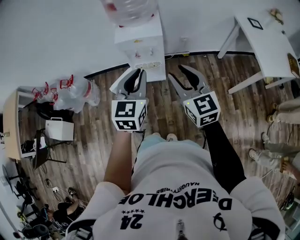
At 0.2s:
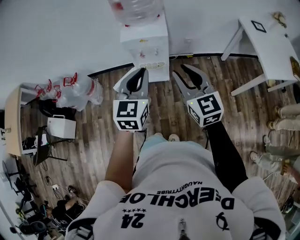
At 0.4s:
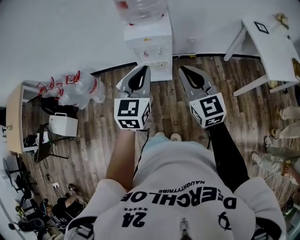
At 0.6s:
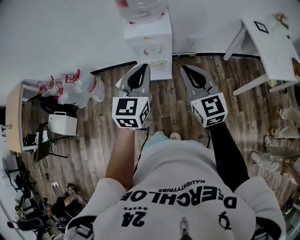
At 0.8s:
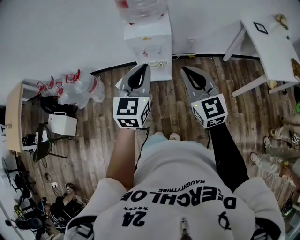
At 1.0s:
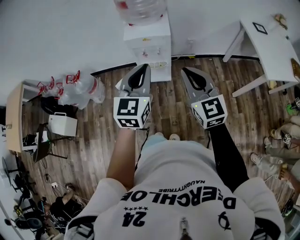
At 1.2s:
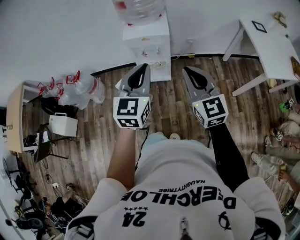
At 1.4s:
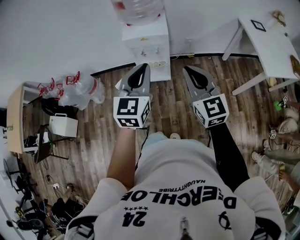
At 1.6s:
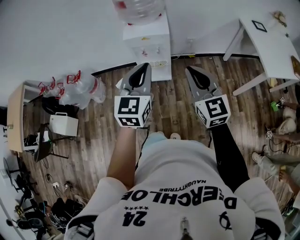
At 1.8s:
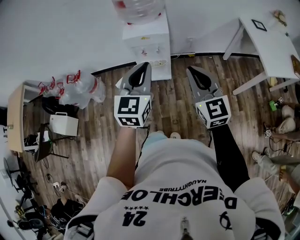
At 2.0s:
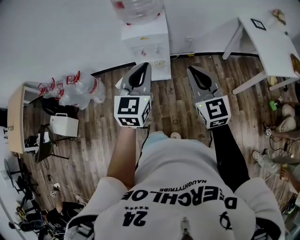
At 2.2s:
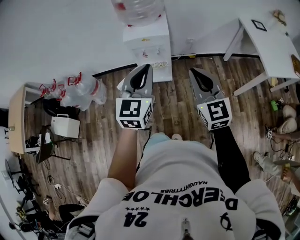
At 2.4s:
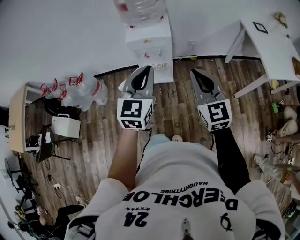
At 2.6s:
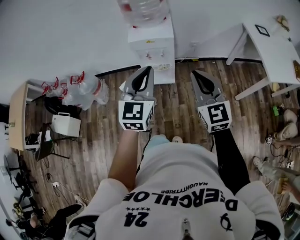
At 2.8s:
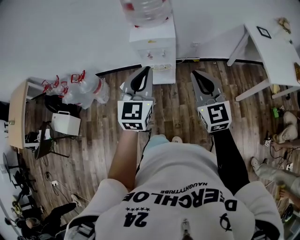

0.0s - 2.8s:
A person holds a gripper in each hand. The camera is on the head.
0.0s - 1.4s: The left gripper moves roughly 5 cm. Meanwhile the right gripper ends up some 5 cm from where it was, and closes up.
1.4s - 2.8s: The grippers make only small movements.

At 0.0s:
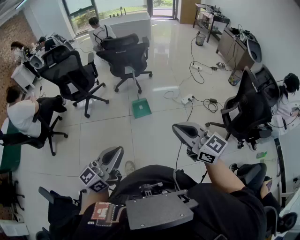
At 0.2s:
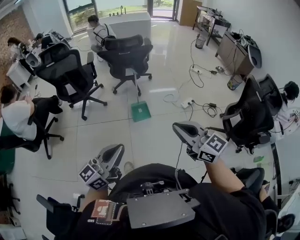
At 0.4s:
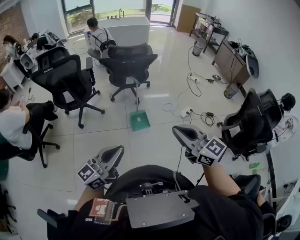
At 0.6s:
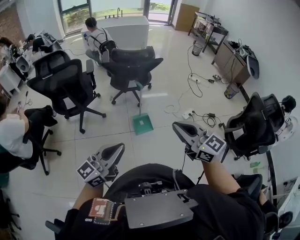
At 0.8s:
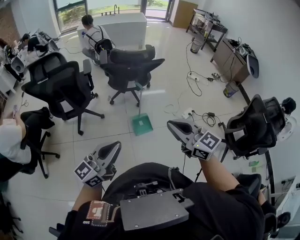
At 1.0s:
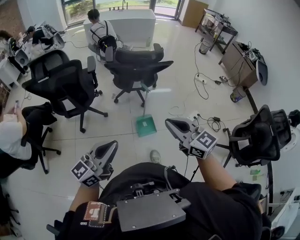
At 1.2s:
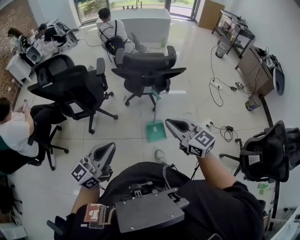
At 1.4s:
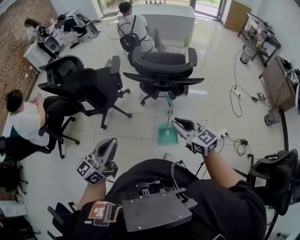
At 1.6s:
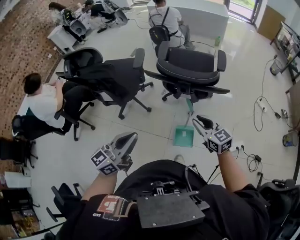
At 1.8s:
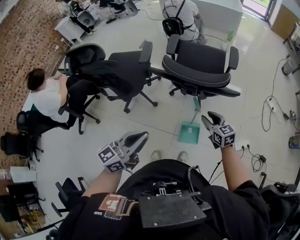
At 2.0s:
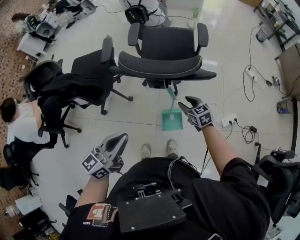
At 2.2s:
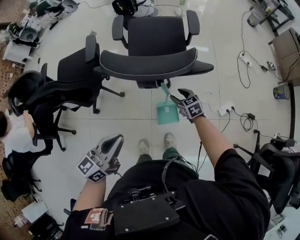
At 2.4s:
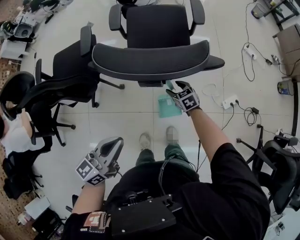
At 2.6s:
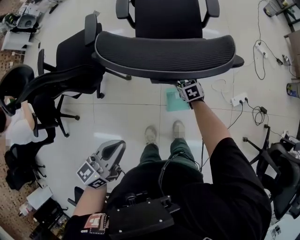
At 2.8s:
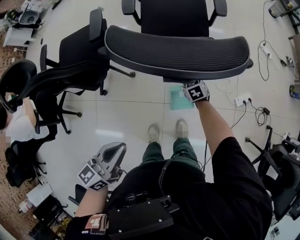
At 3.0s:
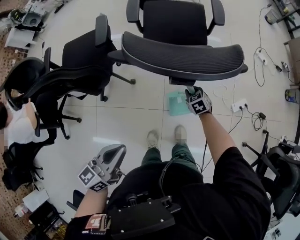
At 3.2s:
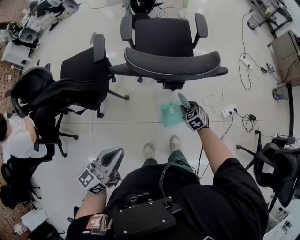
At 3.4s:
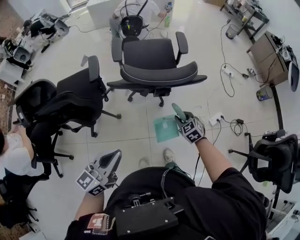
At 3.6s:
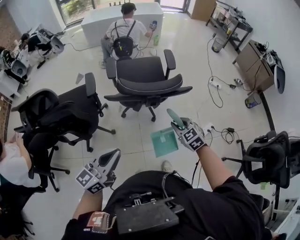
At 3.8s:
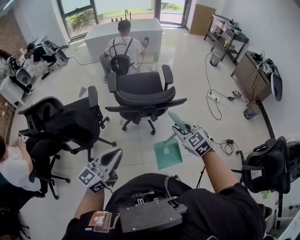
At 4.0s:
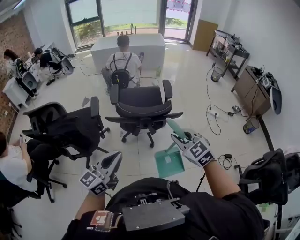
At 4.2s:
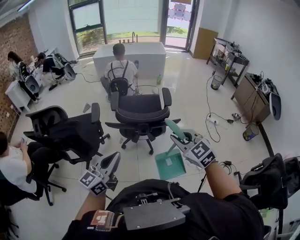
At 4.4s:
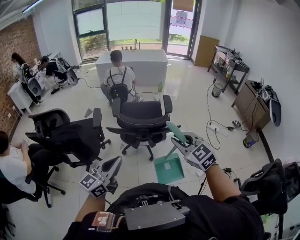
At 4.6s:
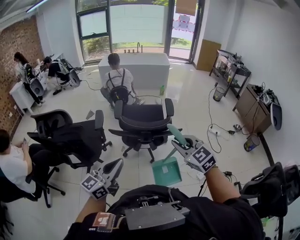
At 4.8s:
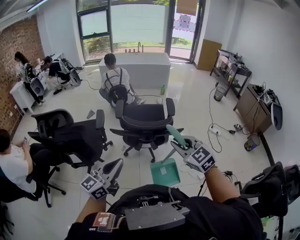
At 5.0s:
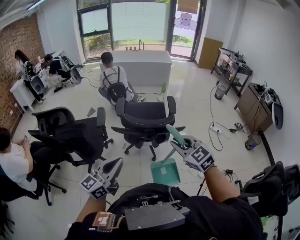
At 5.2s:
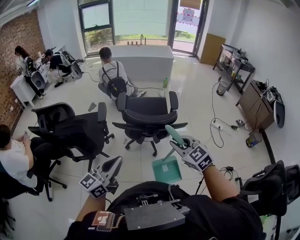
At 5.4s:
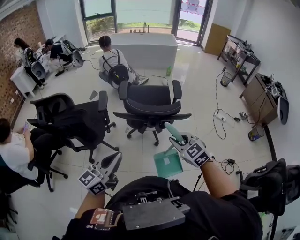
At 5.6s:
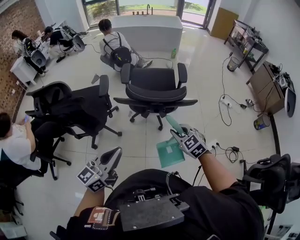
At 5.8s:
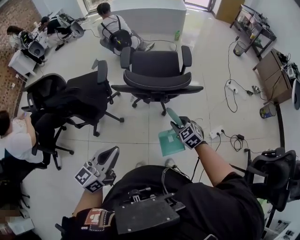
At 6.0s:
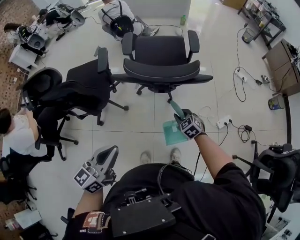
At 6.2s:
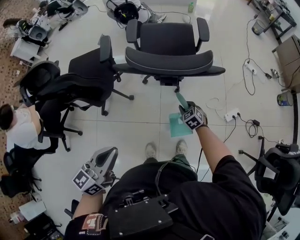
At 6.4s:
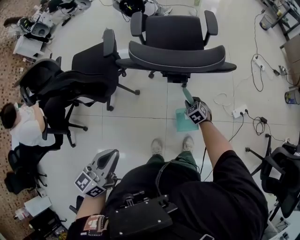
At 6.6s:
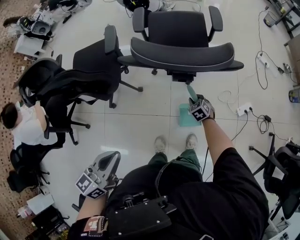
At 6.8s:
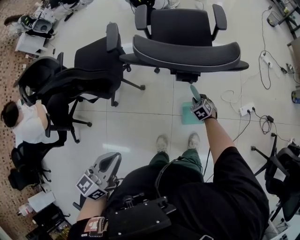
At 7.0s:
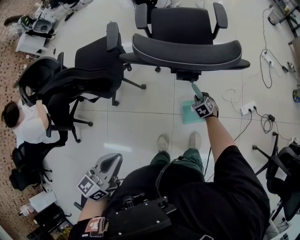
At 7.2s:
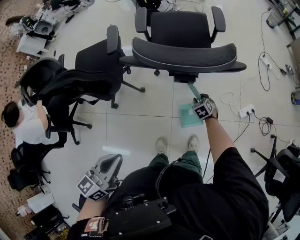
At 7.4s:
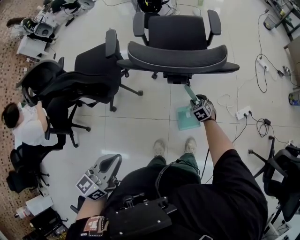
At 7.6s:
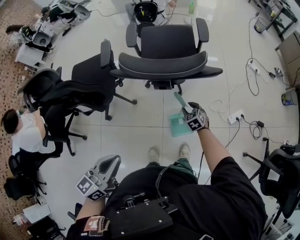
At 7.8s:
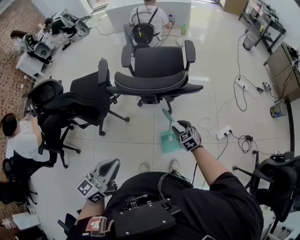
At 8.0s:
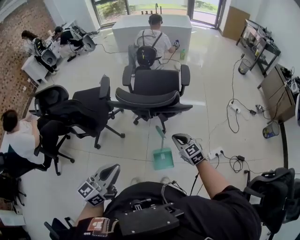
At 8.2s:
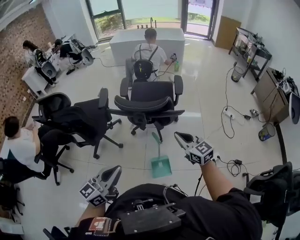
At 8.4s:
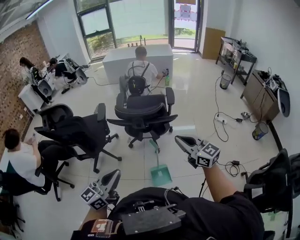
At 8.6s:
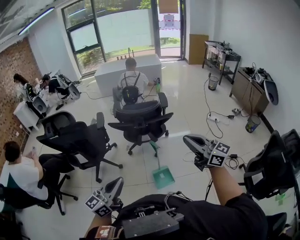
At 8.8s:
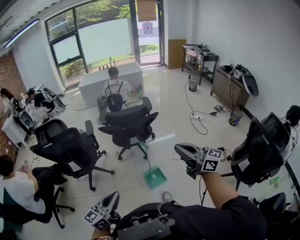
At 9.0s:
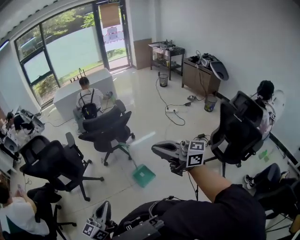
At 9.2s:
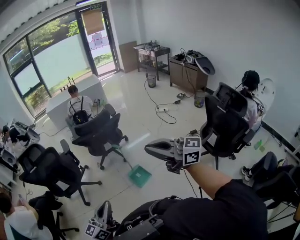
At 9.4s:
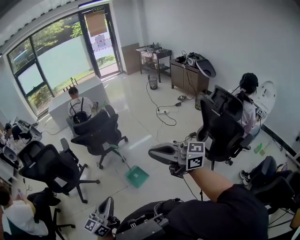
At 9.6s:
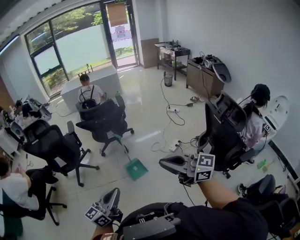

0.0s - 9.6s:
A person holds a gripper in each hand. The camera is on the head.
0.0s - 1.6s: Both grippers are carried forward, about 1 m. The left gripper swivels roughly 20 degrees. Meanwhile the right gripper rotates some 20 degrees, and opens up.
1.6s - 3.2s: The left gripper shifts some 25 cm forward, downward and to the left. The right gripper goes approximately 40 cm downward and forward, points its fingers some 40 degrees further downward, and opens and closes again.
3.2s - 4.8s: The left gripper travels upward and backward by about 35 cm, and changes its angle by roughly 20 degrees. The right gripper goes about 60 cm upward and backward, and points its fingers some 30 degrees further upward.
4.8s - 6.4s: The left gripper moves downward, some 25 cm, and turns by some 30 degrees. Meanwhile the right gripper heads downward, covering roughly 60 cm, and tips its fingers downward by approximately 30 degrees.
6.4s - 8.0s: The left gripper moves to the right, upward and backward, roughly 25 cm; the right gripper travels upward and to the right by about 35 cm, rotates some 30 degrees, and opens, then closes once more.
8.0s - 9.6s: The pair of grippers is taken backward, some 90 cm. The right gripper points its fingers approximately 40 degrees further upward. The left gripper rotates roughly 20 degrees.

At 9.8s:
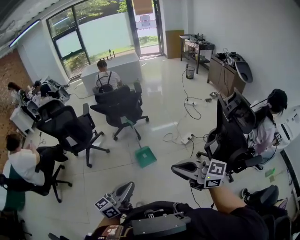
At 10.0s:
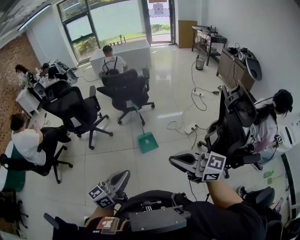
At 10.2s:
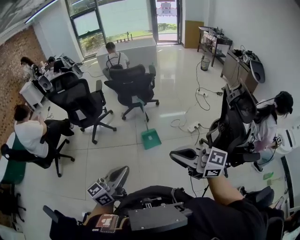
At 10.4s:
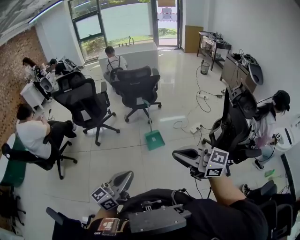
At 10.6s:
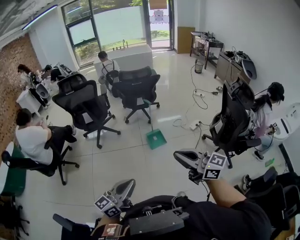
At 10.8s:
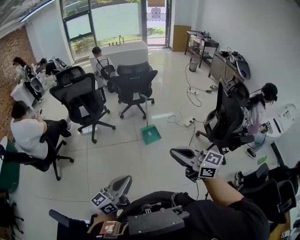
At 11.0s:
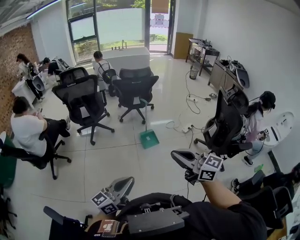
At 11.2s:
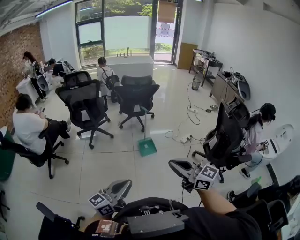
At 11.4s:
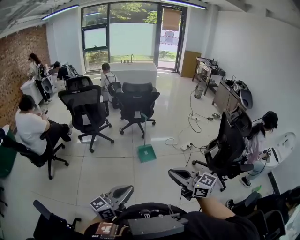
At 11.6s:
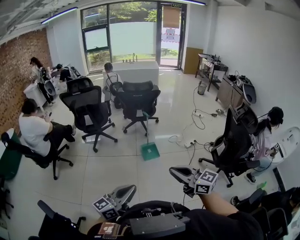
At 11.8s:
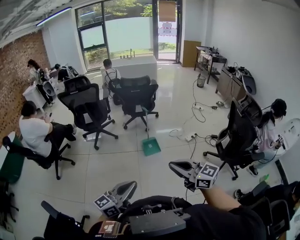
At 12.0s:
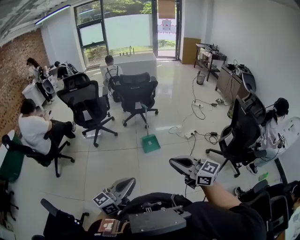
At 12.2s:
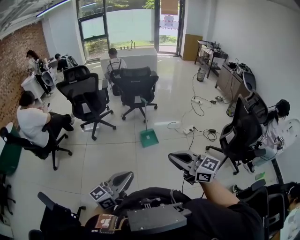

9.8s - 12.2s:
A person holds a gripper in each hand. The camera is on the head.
9.8s - 11.0s: The two grippers travel together, to the left and backward, about 50 cm.
11.0s - 12.2s: The grippers both shift to the right by about 20 cm.

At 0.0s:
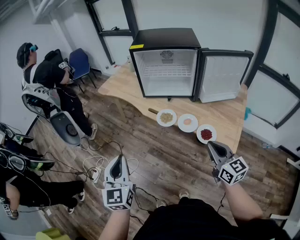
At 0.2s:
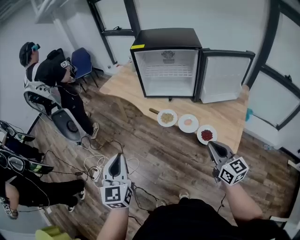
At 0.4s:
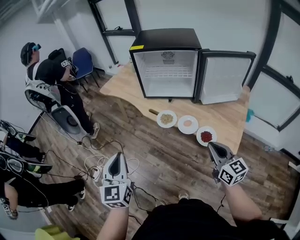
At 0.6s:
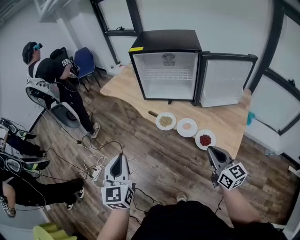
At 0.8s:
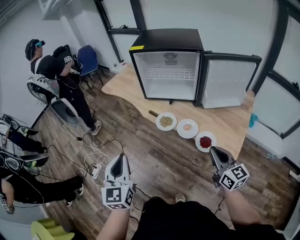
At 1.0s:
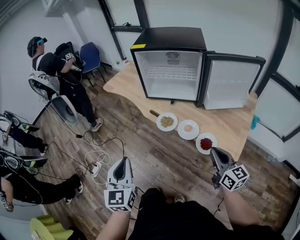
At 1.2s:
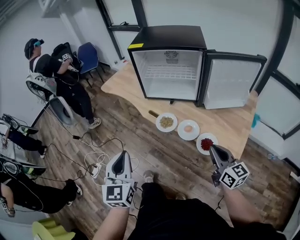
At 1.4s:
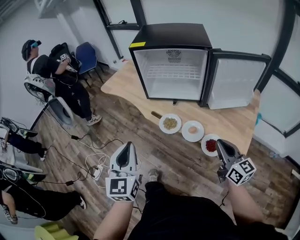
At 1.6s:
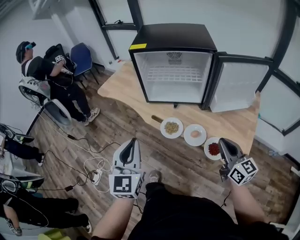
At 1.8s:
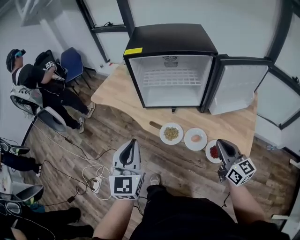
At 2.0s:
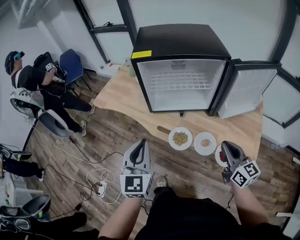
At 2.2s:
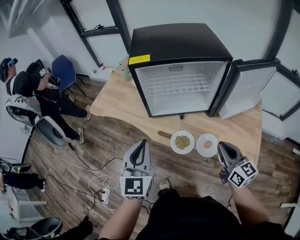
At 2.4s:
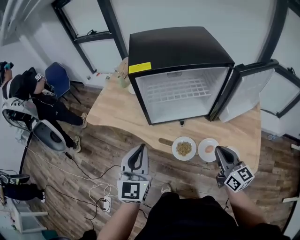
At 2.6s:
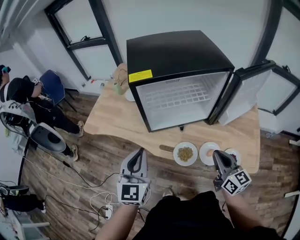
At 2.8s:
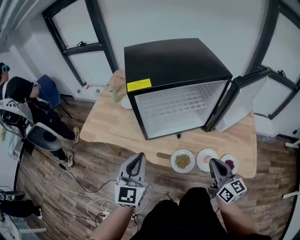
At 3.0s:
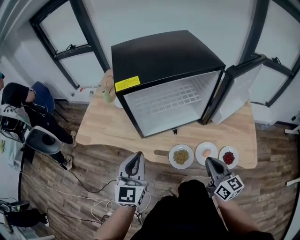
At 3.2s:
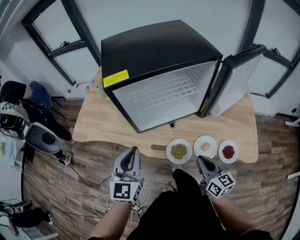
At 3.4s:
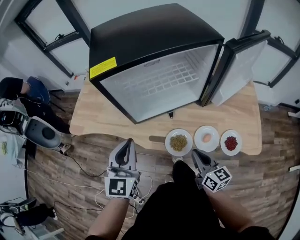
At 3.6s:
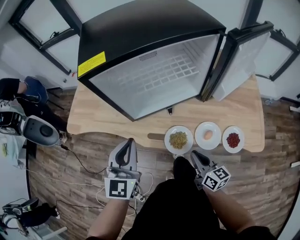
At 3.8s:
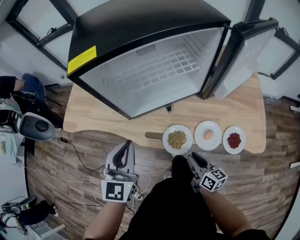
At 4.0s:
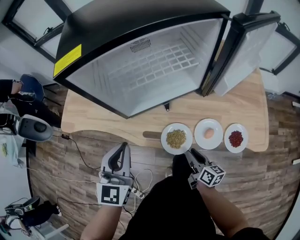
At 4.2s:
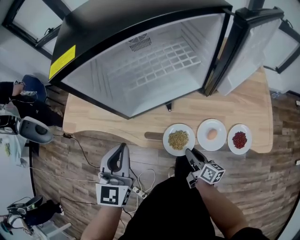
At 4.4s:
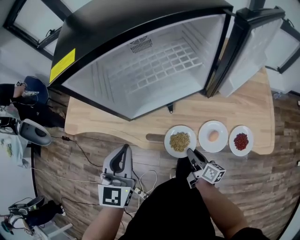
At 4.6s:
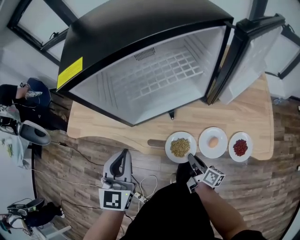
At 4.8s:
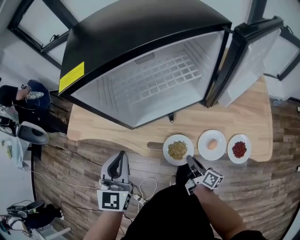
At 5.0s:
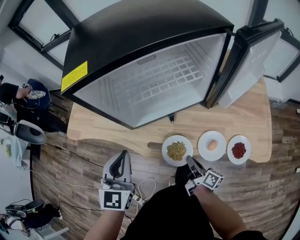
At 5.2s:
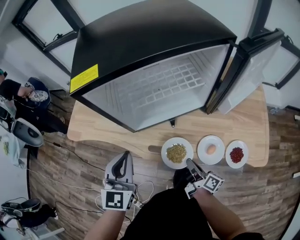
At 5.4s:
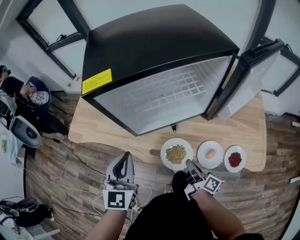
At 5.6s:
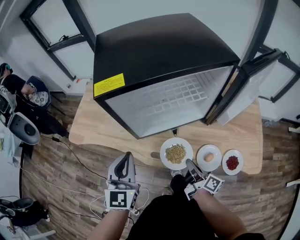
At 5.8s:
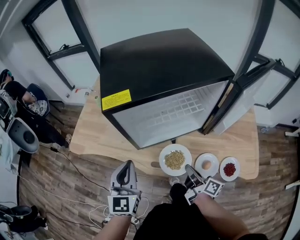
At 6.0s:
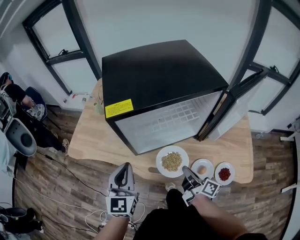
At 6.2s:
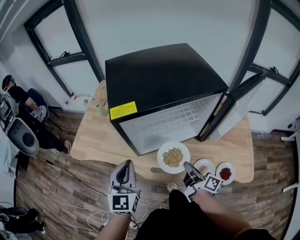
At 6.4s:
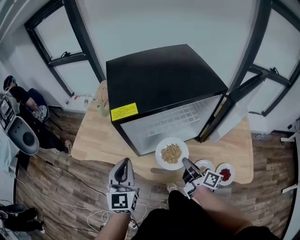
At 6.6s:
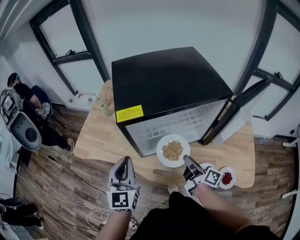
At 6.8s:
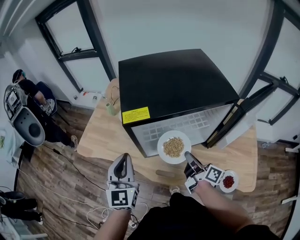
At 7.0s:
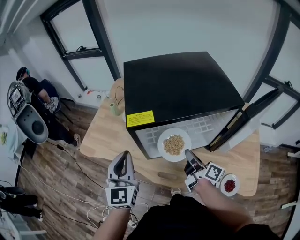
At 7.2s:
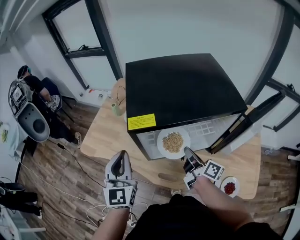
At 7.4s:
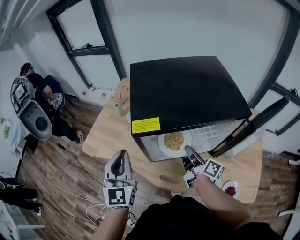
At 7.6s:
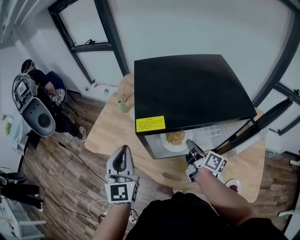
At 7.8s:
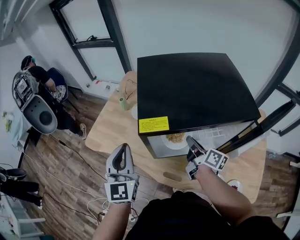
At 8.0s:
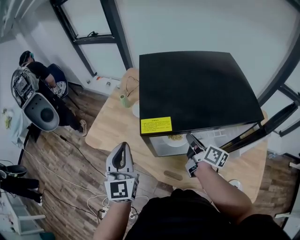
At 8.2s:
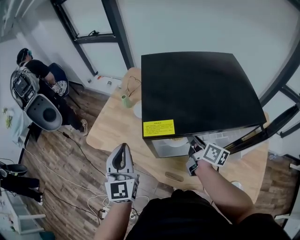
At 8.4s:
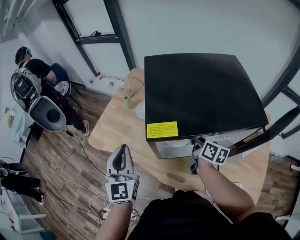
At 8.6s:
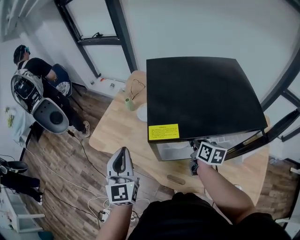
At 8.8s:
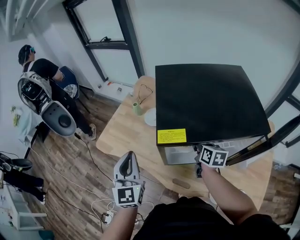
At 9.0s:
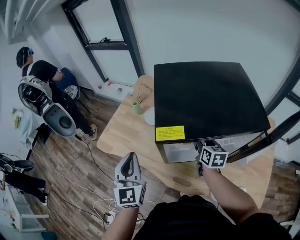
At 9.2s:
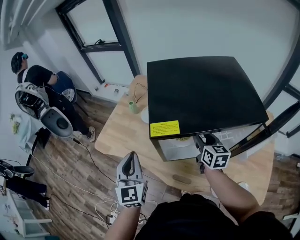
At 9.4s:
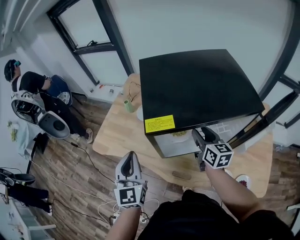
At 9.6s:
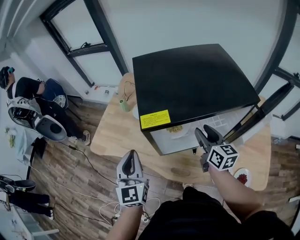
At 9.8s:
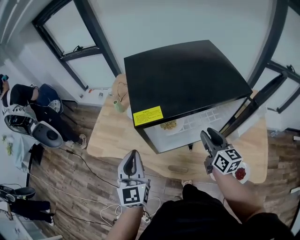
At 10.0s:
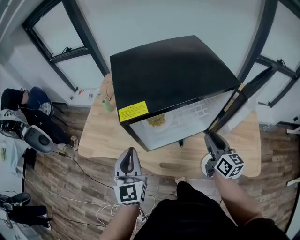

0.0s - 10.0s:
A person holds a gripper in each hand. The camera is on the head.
0.0s - 1.4s: The grippers both shift forward and to the right by some 10 cm.
1.4s - 2.8s: The left gripper shifts by roughly 30 cm, and changes its angle by roughly 30 degrees. Meanwhile the right gripper ends up roughly 20 cm from where it was, and swivels some 20 degrees.
2.8s - 4.2s: The right gripper heads downward, covering about 30 cm, twists some 40 degrees clockwise, seen from behind, and opens, while the left gripper heads downward, covering approximately 10 cm.
4.2s - 5.8s: The left gripper moves some 5 cm; the right gripper shifts some 15 cm upward and forward, and closes.
5.8s - 7.2s: The left gripper shifts about 10 cm upward and forward. Meanwhile the right gripper moves forward and upward, about 20 cm.
7.2s - 8.6s: The left gripper heads to the left, covering about 5 cm. Meanwhile the right gripper heads forward, covering some 10 cm, and rotates approximately 40 degrees.
8.6s - 10.0s: The left gripper moves to the right, approximately 10 cm, while the right gripper shifts some 20 cm backward and to the right, and changes its angle by some 30 degrees.
